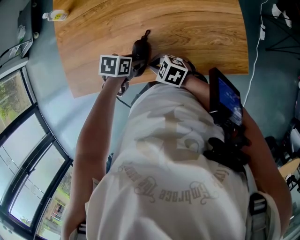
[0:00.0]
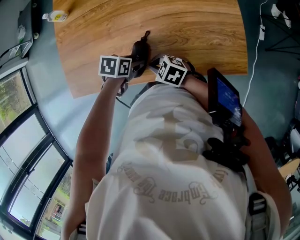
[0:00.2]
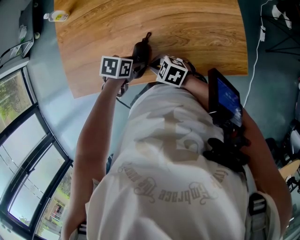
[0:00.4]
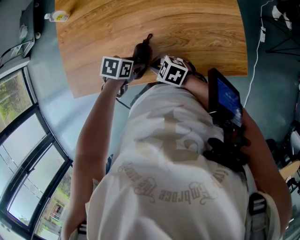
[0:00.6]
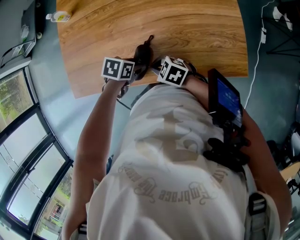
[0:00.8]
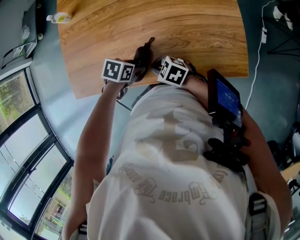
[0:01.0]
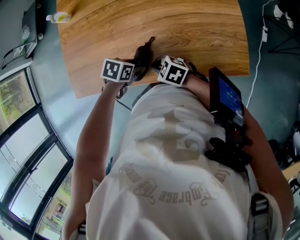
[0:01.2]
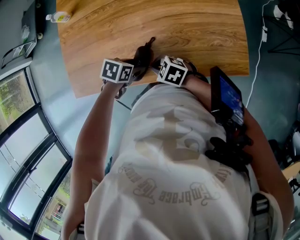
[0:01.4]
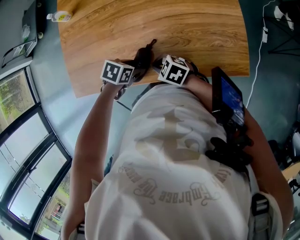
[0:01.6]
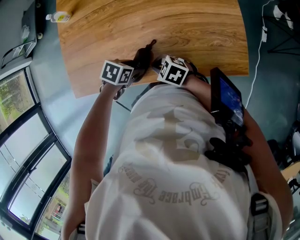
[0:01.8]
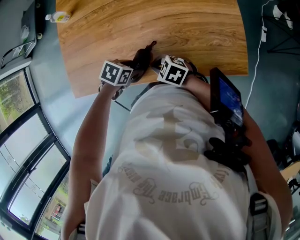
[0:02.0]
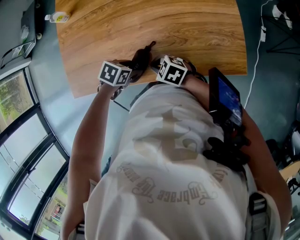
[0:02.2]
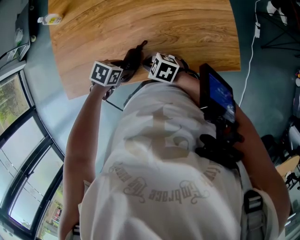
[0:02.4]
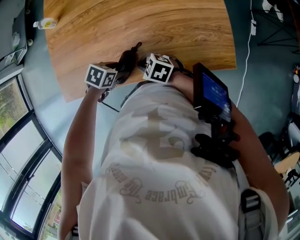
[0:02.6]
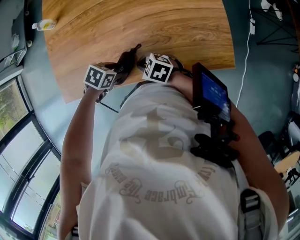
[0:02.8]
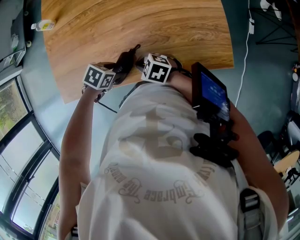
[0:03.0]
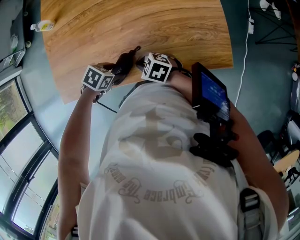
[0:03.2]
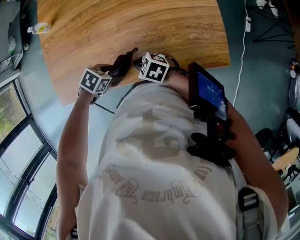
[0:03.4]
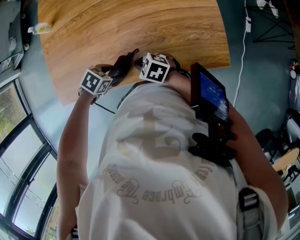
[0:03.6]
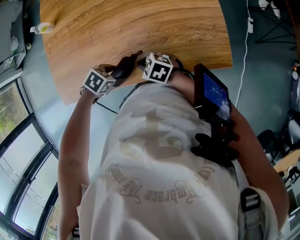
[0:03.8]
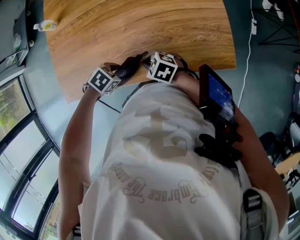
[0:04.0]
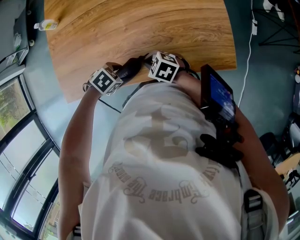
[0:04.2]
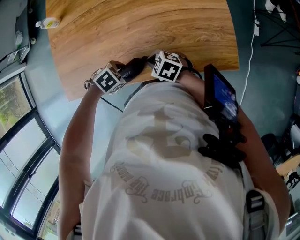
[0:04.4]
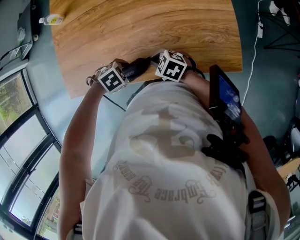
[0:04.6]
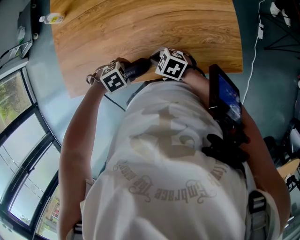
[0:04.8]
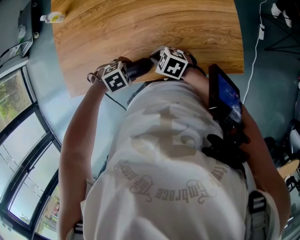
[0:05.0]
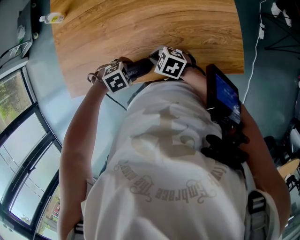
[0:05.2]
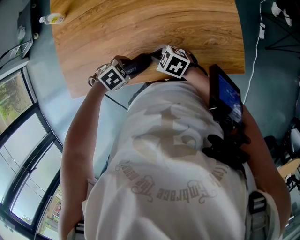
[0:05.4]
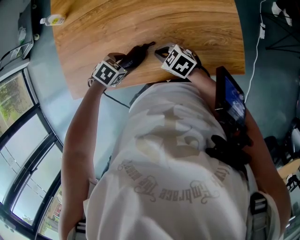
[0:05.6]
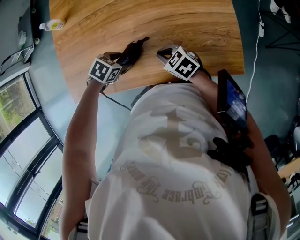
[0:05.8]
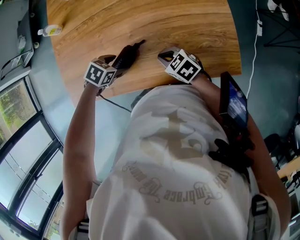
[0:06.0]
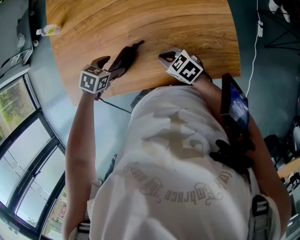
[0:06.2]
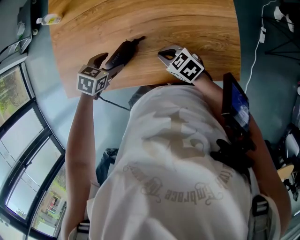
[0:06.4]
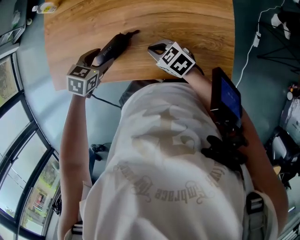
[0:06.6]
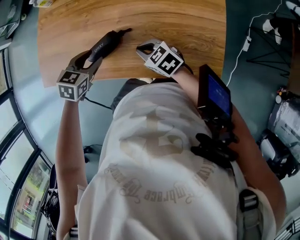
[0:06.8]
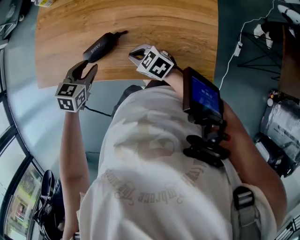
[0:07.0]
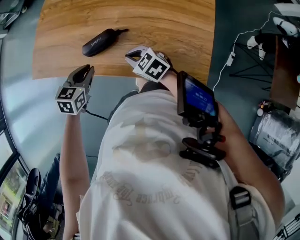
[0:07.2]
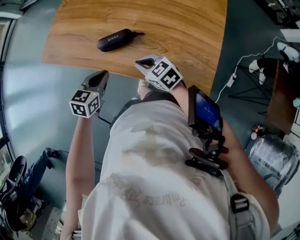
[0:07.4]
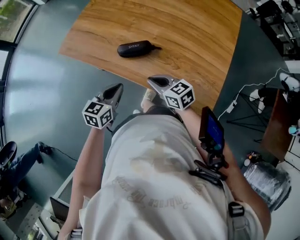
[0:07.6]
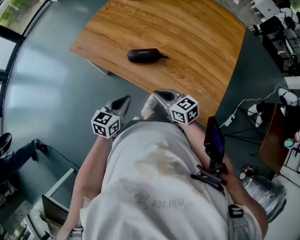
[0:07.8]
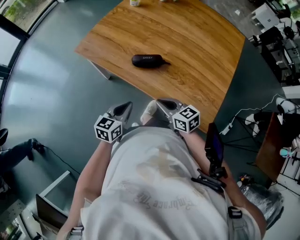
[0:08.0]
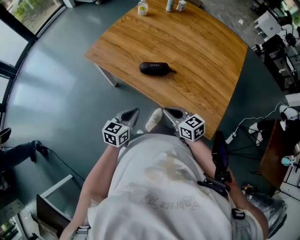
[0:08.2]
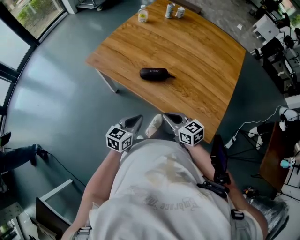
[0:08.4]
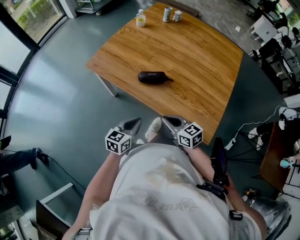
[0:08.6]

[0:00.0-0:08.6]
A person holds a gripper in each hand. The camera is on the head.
0:00.0 to 0:01.4: The grippers stay close to where they were, moving slightly.
0:01.4 to 0:02.8: There are only small adjustments of the grippers.
0:02.8 to 0:04.4: The left gripper turns by some 20 degrees.
0:04.4 to 0:05.8: The left gripper changes place by roughly 10 cm; the right gripper moves some 5 cm.
0:05.8 to 0:07.2: The right gripper ends up about 5 cm from where it was, and swivels roughly 20 degrees; the left gripper ends up some 10 cm from where it was, changes its angle by approximately 50 degrees, and closes its fingers.
0:07.2 to 0:08.6: The left gripper goes roughly 15 cm backward, and changes its angle by roughly 30 degrees, while the right gripper is displaced backward and upward by about 15 cm, and turns by approximately 20 degrees.

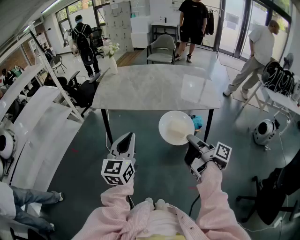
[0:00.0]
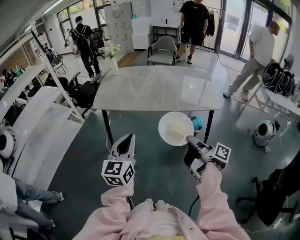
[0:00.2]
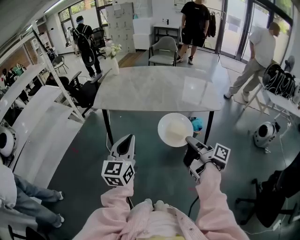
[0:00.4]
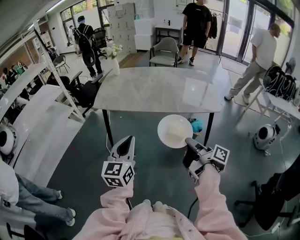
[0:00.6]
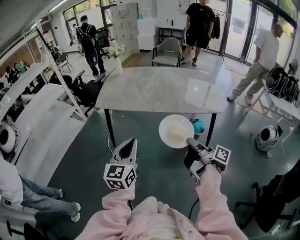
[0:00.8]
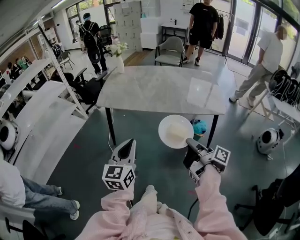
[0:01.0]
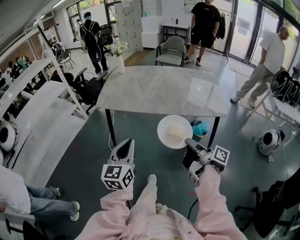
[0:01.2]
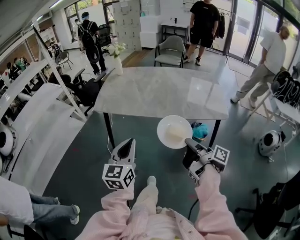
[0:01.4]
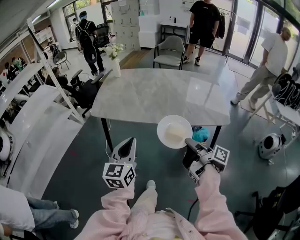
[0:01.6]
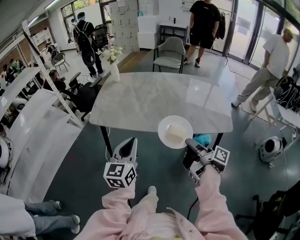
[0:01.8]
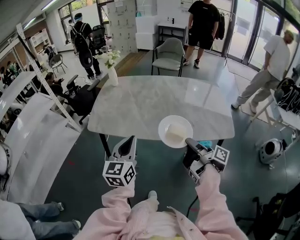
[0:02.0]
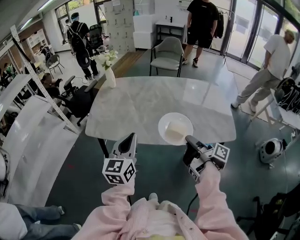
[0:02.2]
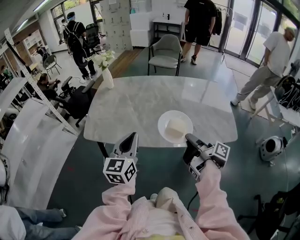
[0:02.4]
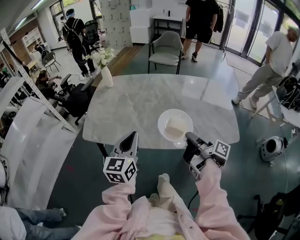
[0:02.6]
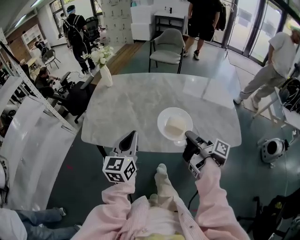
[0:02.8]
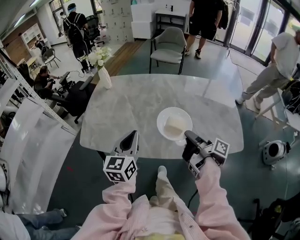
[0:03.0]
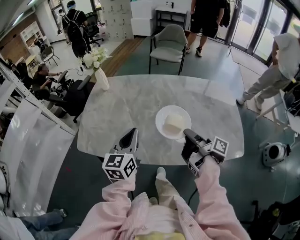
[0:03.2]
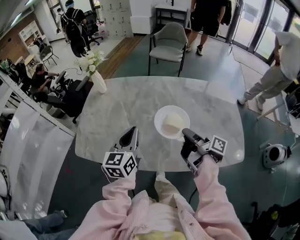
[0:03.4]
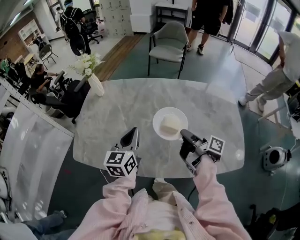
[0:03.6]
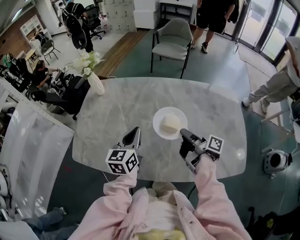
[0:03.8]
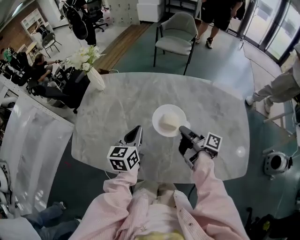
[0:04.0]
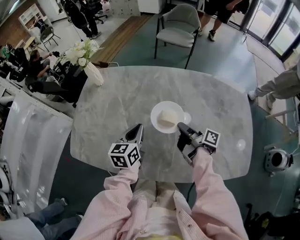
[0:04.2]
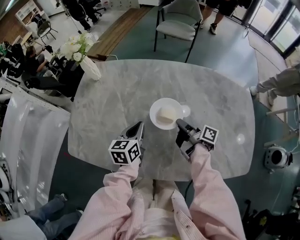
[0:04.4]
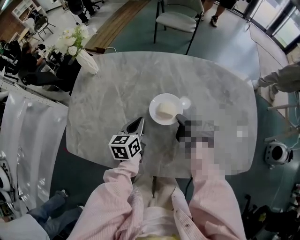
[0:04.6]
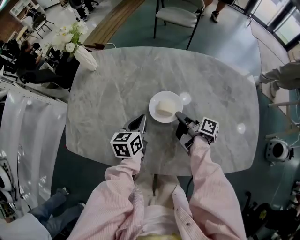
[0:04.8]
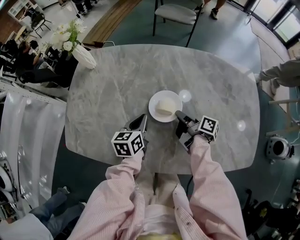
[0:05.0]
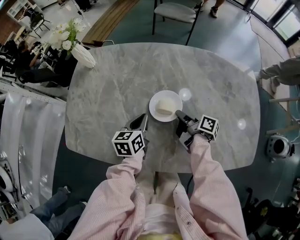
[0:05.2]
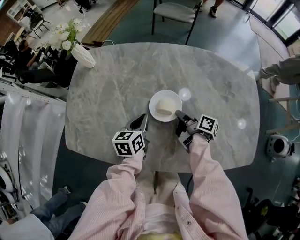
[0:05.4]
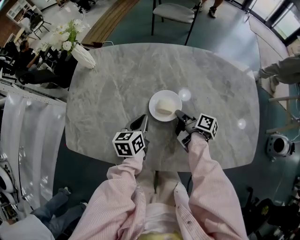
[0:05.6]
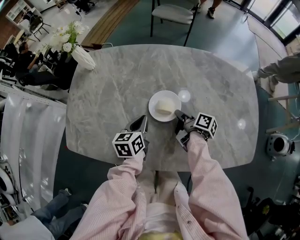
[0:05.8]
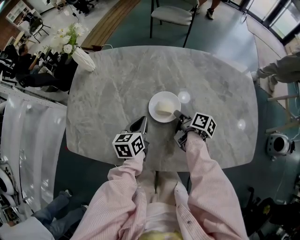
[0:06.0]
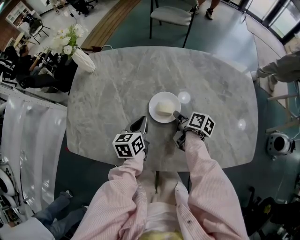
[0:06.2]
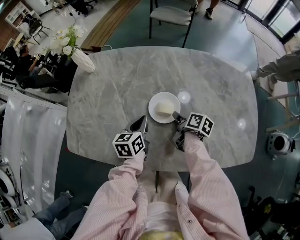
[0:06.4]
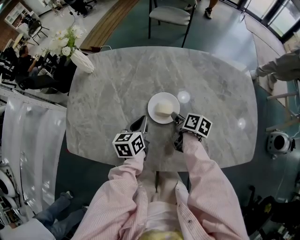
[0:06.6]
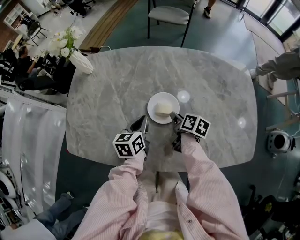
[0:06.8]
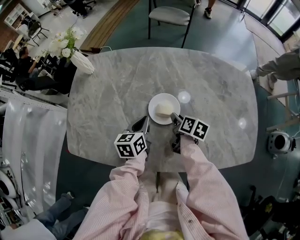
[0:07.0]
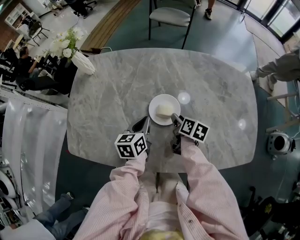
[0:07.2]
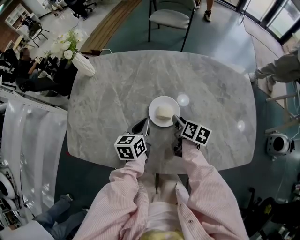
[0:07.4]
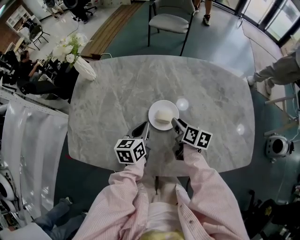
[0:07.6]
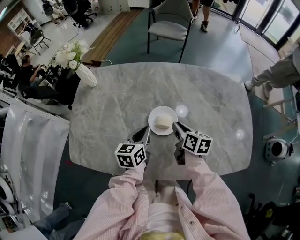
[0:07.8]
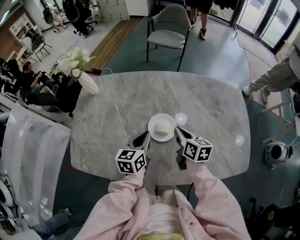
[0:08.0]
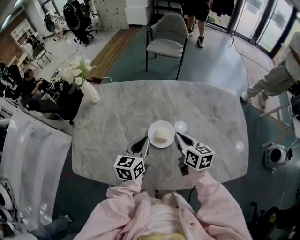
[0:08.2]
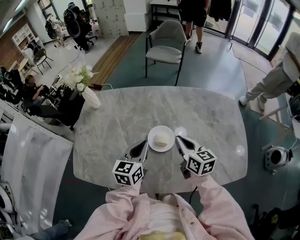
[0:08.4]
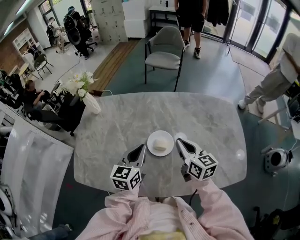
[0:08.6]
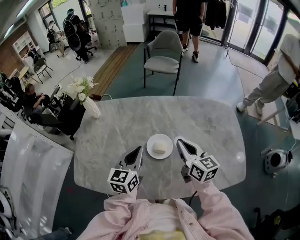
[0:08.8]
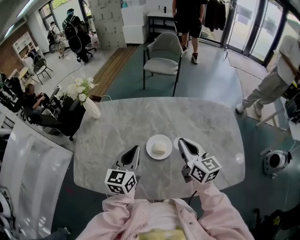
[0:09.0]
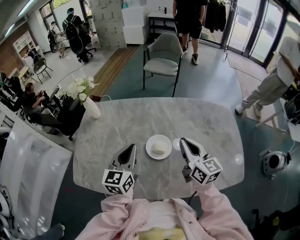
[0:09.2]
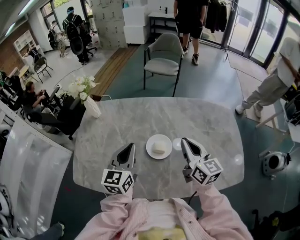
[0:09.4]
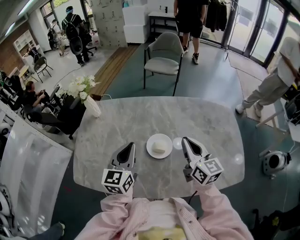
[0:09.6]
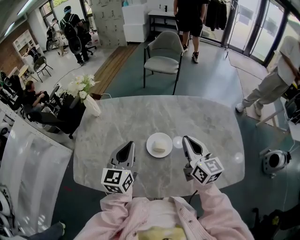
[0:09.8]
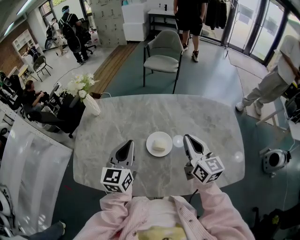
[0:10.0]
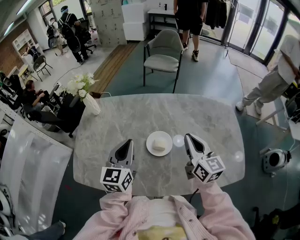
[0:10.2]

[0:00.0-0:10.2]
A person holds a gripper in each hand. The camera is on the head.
0:00.0 to 0:01.4: The left gripper ends up roughly 5 cm from where it was.
0:01.4 to 0:03.0: The left gripper ends up some 40 cm from where it was.
0:03.0 to 0:04.4: The left gripper moves approximately 30 cm, and turns by approximately 20 degrees.
0:04.4 to 0:05.8: The left gripper moves about 5 cm.
0:07.2 to 0:08.8: The left gripper heads upward, covering roughly 15 cm, and swivels roughly 20 degrees.
0:08.8 to 0:10.2: The left gripper changes place by about 5 cm.

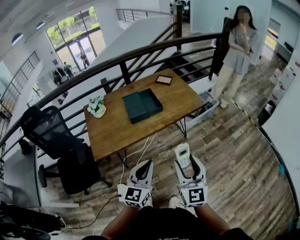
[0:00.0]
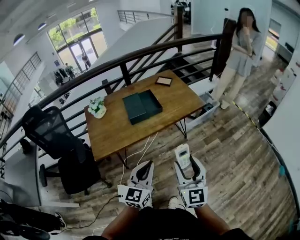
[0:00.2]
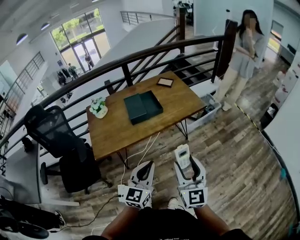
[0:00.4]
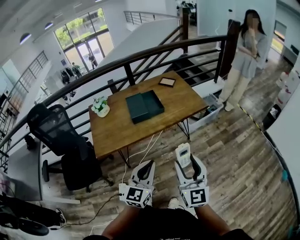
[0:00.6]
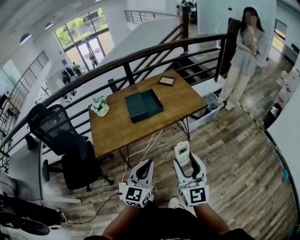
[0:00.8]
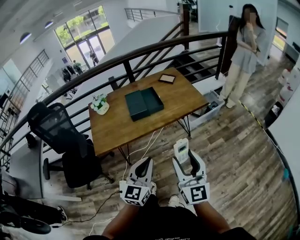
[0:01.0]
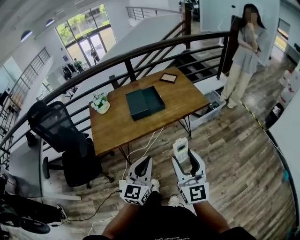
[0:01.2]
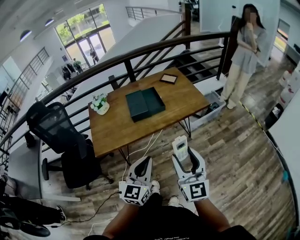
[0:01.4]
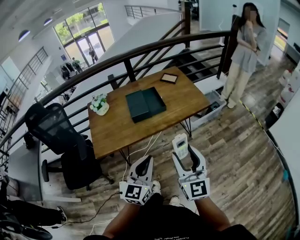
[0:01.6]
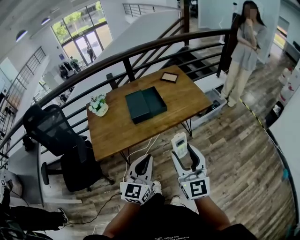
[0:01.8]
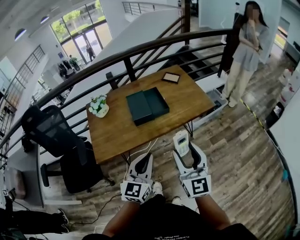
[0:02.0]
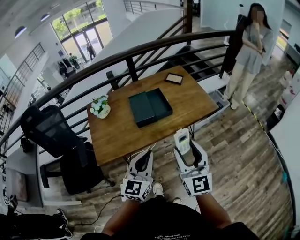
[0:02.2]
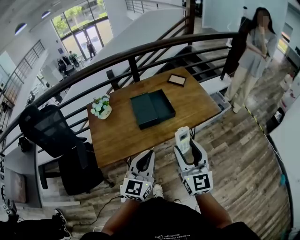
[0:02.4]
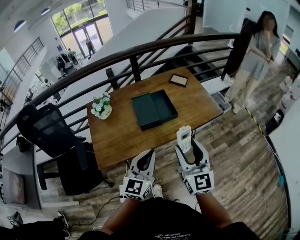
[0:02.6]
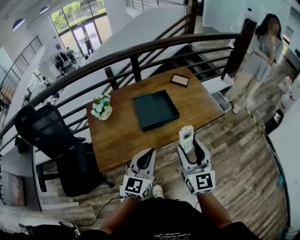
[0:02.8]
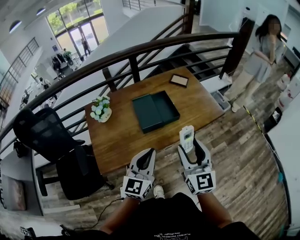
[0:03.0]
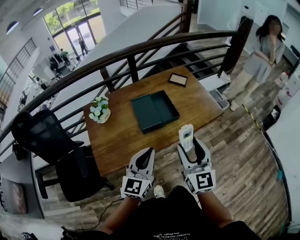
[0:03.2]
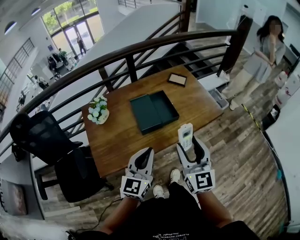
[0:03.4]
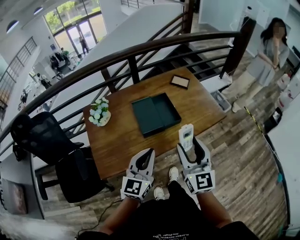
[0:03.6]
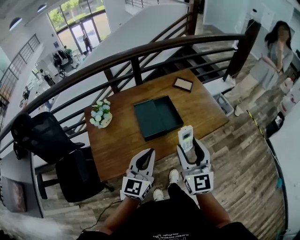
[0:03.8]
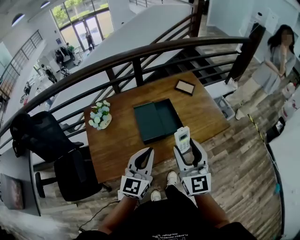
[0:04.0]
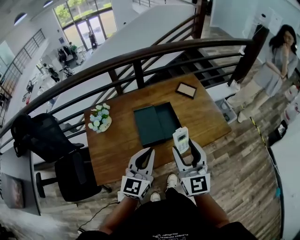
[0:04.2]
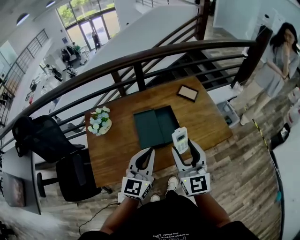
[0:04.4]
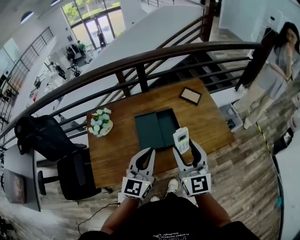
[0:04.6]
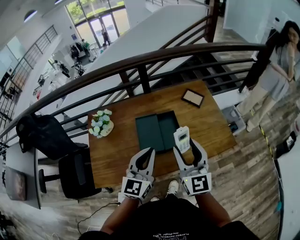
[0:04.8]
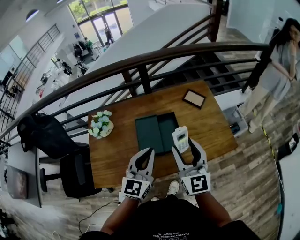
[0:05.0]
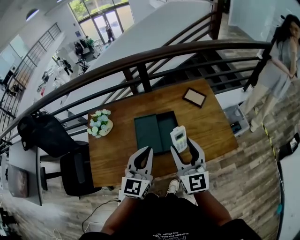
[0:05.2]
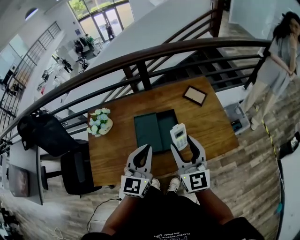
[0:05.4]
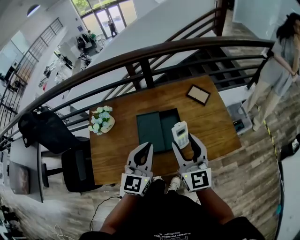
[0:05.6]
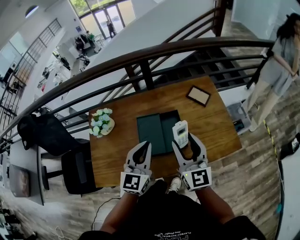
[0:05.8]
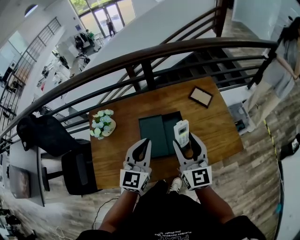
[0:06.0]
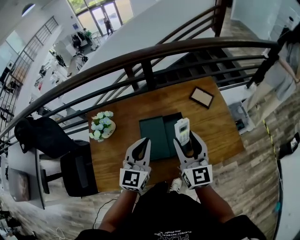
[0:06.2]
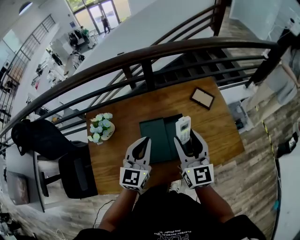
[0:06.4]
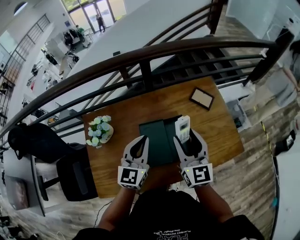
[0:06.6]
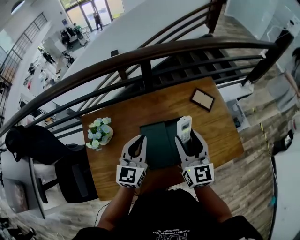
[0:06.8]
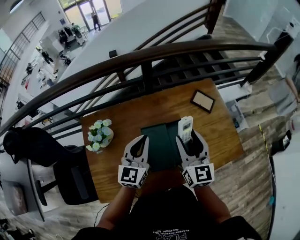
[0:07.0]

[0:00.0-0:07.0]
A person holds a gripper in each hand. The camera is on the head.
0:00.0 to 0:01.4: The grippers make only small movements.
0:01.4 to 0:02.8: Both grippers travel together forward and to the left, roughly 20 cm.
0:02.8 to 0:04.2: Both grippers move forward, some 15 cm.
0:04.2 to 0:05.6: The two grippers go approximately 10 cm forward.
0:05.6 to 0:07.0: Both grippers move forward and to the left, about 15 cm.
